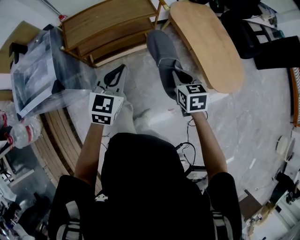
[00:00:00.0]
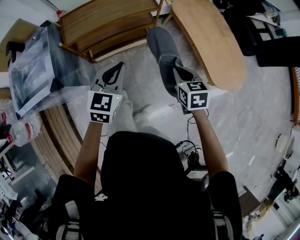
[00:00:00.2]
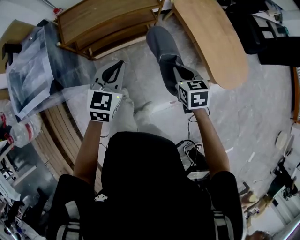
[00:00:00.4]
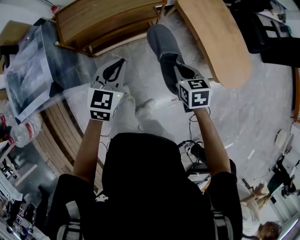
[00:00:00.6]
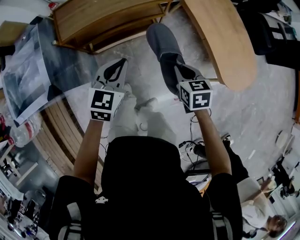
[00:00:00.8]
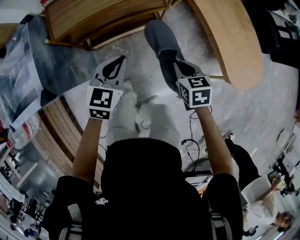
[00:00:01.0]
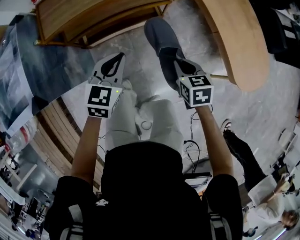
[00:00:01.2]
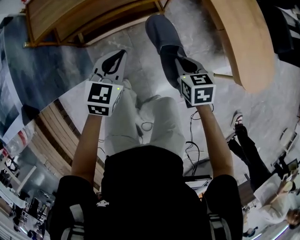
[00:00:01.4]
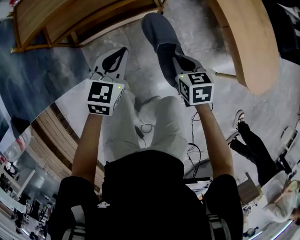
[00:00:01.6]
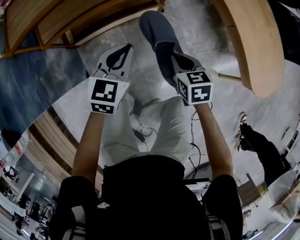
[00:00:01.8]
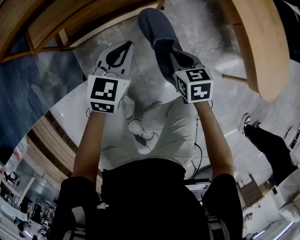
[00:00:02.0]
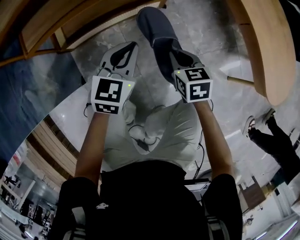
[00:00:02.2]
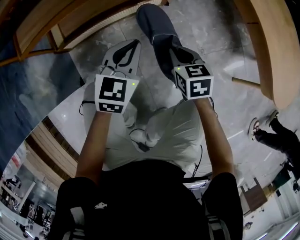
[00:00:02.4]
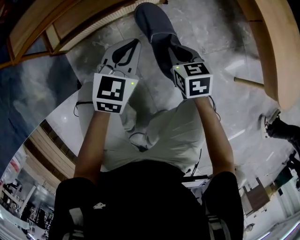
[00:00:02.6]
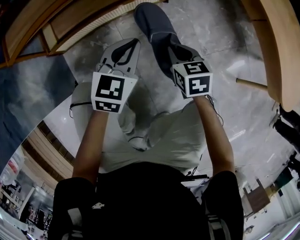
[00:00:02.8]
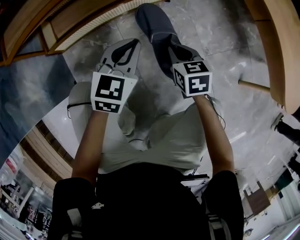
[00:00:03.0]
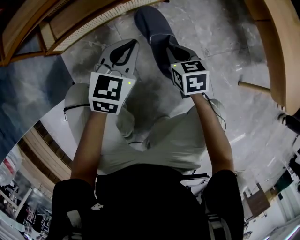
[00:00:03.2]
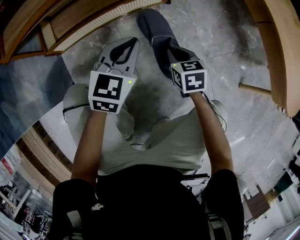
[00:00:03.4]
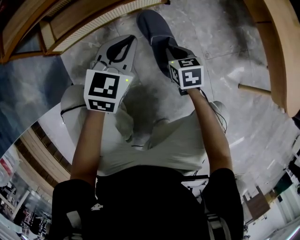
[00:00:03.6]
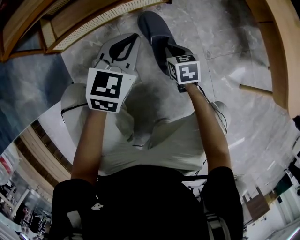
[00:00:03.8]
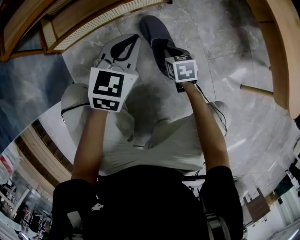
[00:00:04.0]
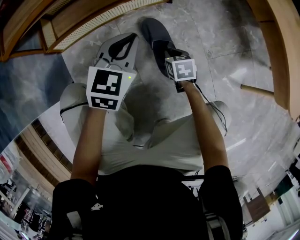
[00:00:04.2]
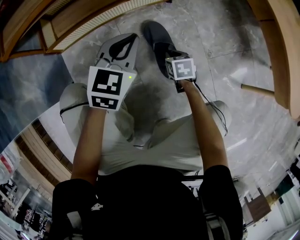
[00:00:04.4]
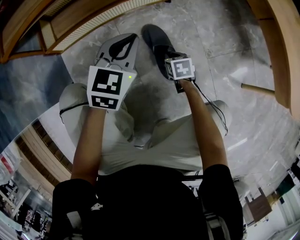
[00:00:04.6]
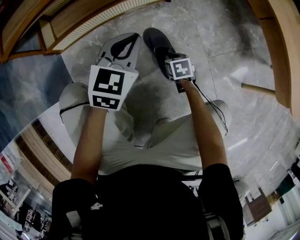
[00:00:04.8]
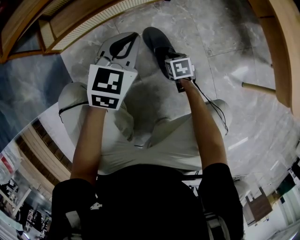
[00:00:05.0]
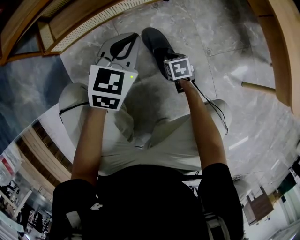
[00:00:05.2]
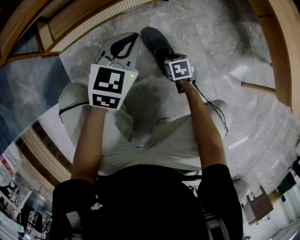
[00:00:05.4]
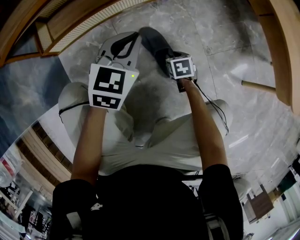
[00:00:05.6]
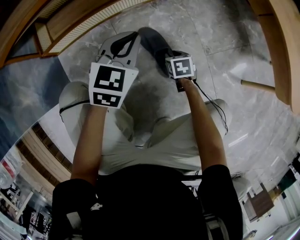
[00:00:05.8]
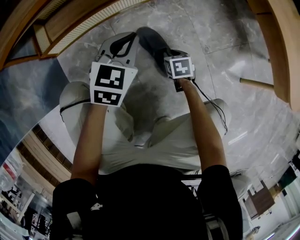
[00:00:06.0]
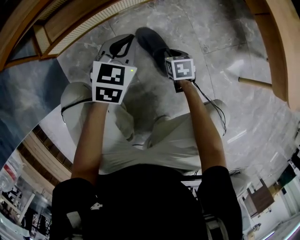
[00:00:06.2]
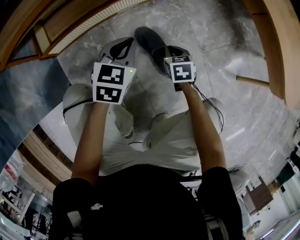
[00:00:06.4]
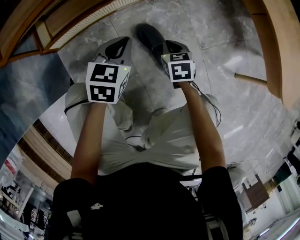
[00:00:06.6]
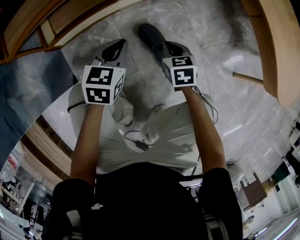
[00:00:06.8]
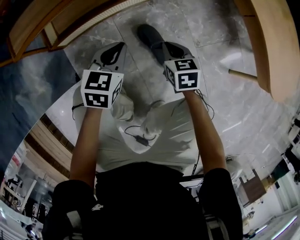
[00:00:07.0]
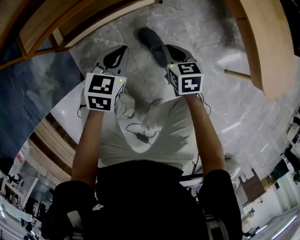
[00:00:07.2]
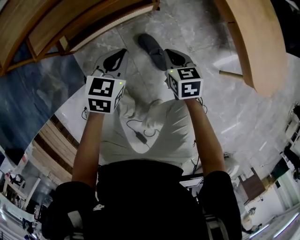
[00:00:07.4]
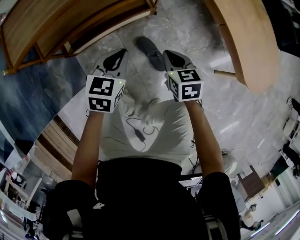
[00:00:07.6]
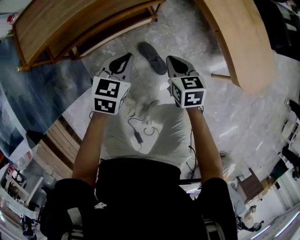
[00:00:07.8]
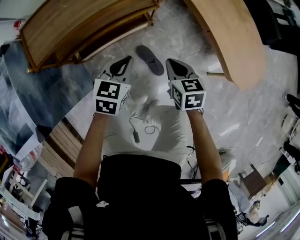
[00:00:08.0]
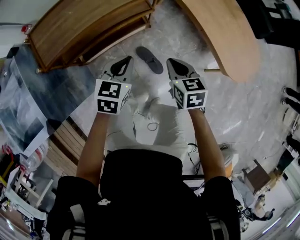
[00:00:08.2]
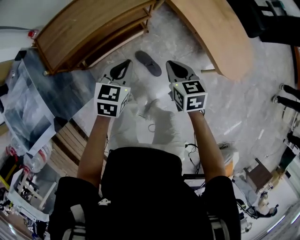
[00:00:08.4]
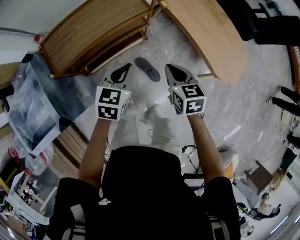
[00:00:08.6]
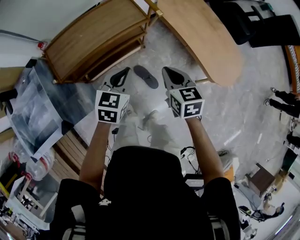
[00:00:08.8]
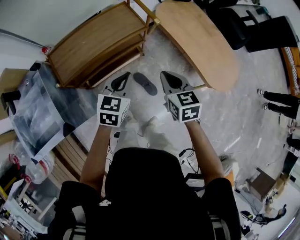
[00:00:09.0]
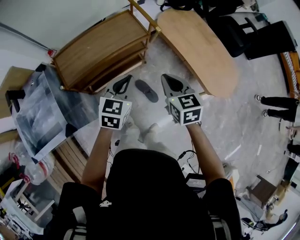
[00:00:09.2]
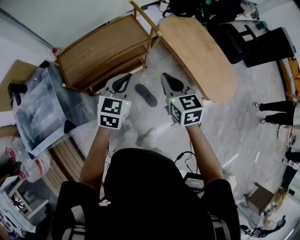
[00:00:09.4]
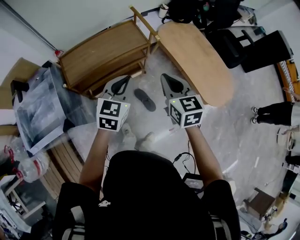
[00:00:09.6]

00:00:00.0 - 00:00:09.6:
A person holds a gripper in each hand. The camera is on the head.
00:00:00.0 - 00:00:01.6: The grippers both shift downward by about 35 cm.
00:00:01.6 - 00:00:03.2: Both grippers move downward, approximately 30 cm.
00:00:03.2 - 00:00:04.8: The right gripper heads downward, covering some 15 cm.
00:00:04.8 - 00:00:06.4: The right gripper travels upward by roughly 10 cm.
00:00:06.4 - 00:00:08.0: Both grippers move upward, approximately 50 cm.
00:00:08.0 - 00:00:09.6: Both grippers move upward, approximately 35 cm. The right gripper rotates roughly 20 degrees.

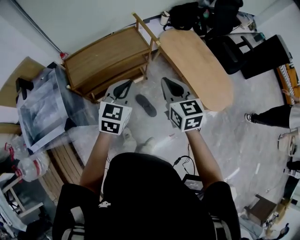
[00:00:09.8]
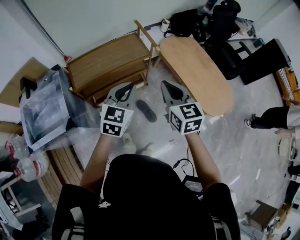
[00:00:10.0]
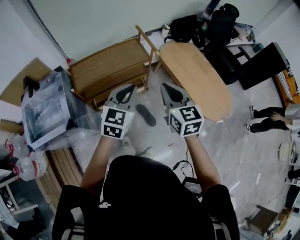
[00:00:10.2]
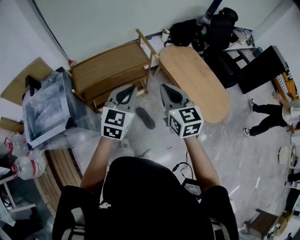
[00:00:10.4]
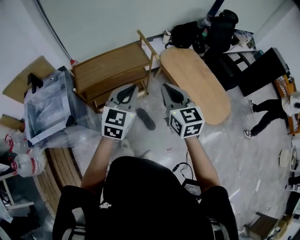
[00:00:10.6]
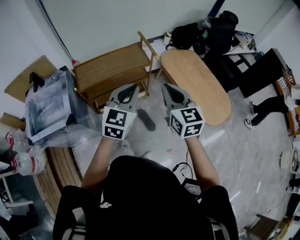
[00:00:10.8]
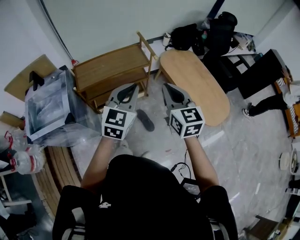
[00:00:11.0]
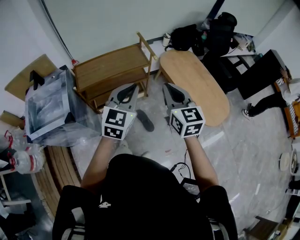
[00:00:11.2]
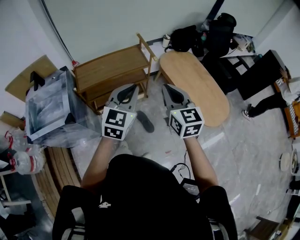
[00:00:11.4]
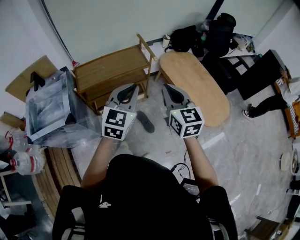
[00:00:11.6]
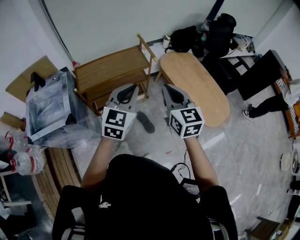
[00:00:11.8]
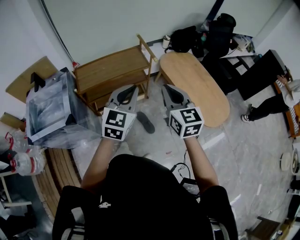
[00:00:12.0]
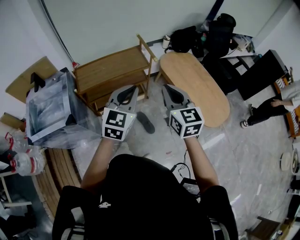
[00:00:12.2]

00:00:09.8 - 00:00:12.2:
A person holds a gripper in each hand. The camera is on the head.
00:00:09.8 - 00:00:11.0: The right gripper goes roughly 10 cm backward and upward, while the left gripper is displaced upward and backward by about 10 cm.
00:00:11.0 - 00:00:12.2: Both grippers stay about where they are.

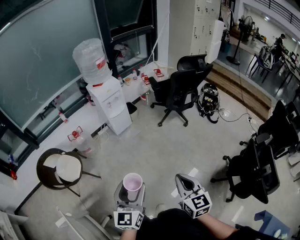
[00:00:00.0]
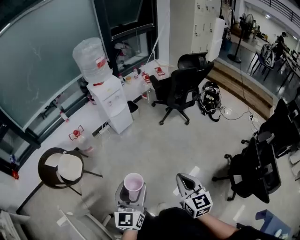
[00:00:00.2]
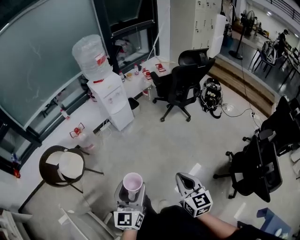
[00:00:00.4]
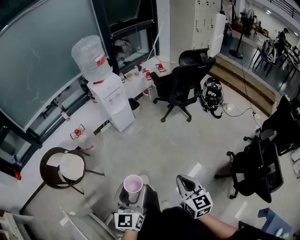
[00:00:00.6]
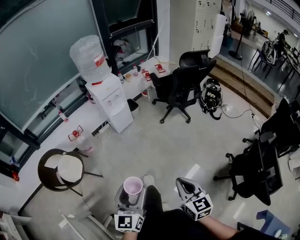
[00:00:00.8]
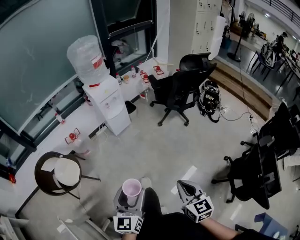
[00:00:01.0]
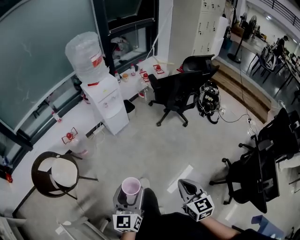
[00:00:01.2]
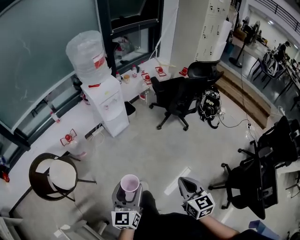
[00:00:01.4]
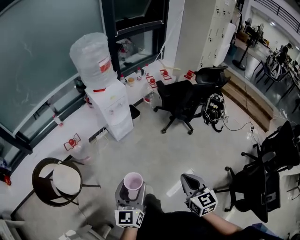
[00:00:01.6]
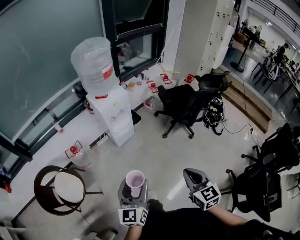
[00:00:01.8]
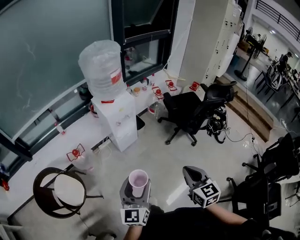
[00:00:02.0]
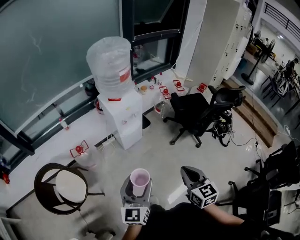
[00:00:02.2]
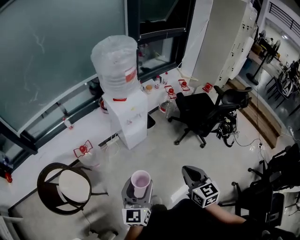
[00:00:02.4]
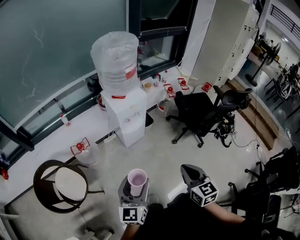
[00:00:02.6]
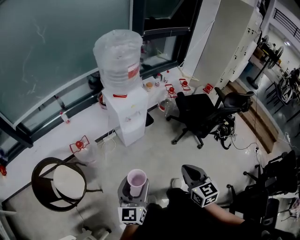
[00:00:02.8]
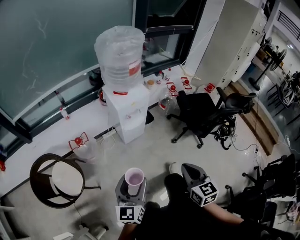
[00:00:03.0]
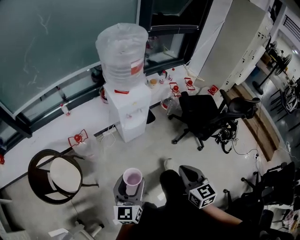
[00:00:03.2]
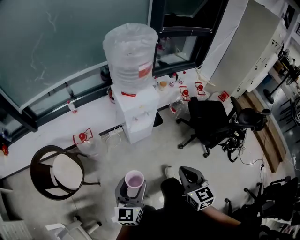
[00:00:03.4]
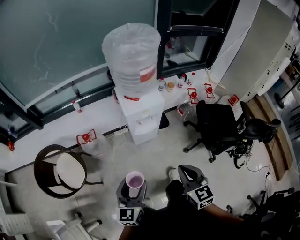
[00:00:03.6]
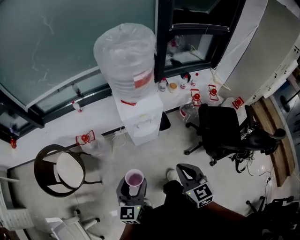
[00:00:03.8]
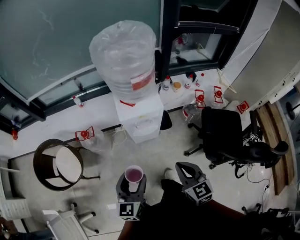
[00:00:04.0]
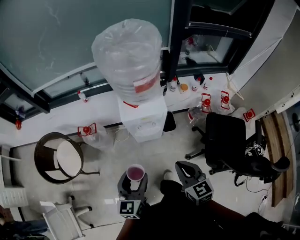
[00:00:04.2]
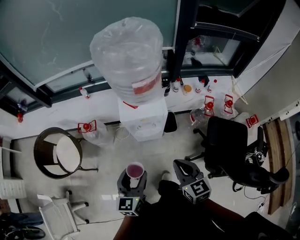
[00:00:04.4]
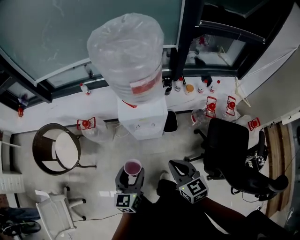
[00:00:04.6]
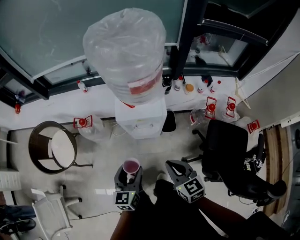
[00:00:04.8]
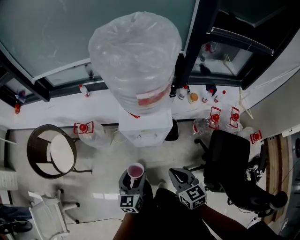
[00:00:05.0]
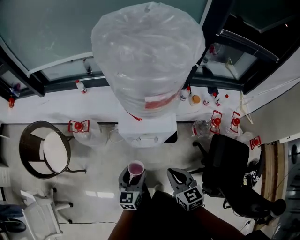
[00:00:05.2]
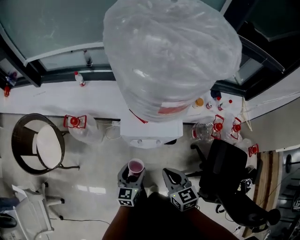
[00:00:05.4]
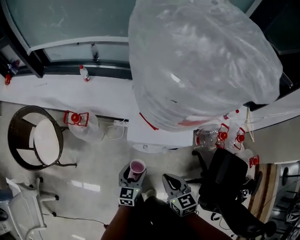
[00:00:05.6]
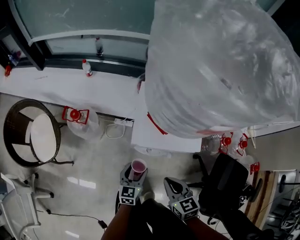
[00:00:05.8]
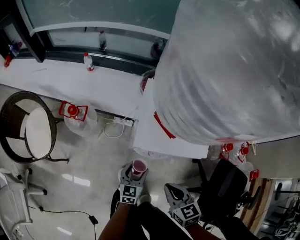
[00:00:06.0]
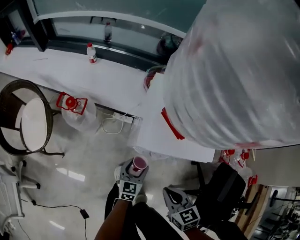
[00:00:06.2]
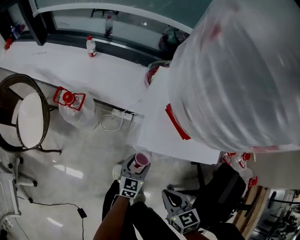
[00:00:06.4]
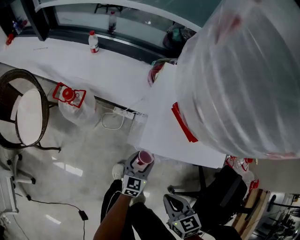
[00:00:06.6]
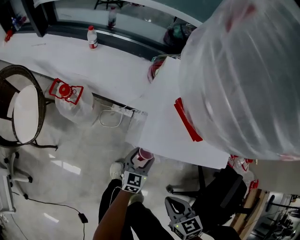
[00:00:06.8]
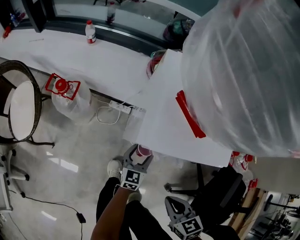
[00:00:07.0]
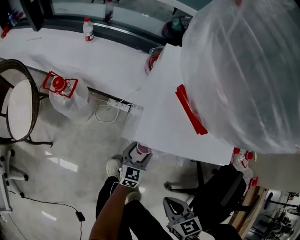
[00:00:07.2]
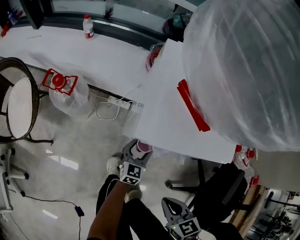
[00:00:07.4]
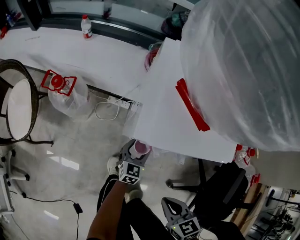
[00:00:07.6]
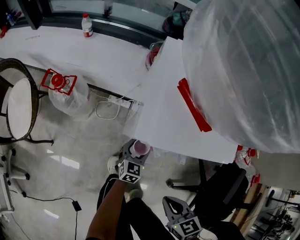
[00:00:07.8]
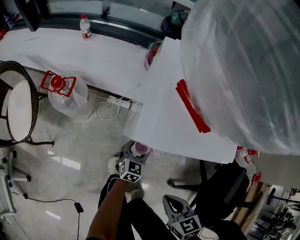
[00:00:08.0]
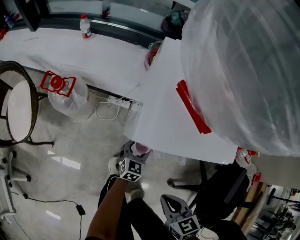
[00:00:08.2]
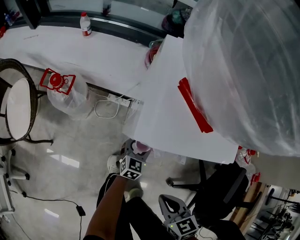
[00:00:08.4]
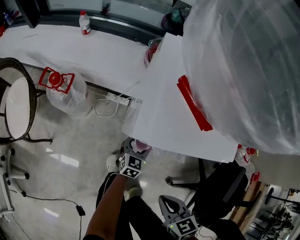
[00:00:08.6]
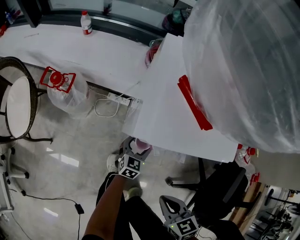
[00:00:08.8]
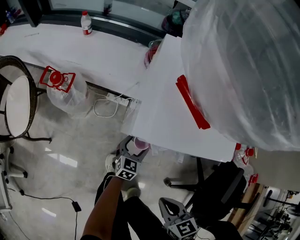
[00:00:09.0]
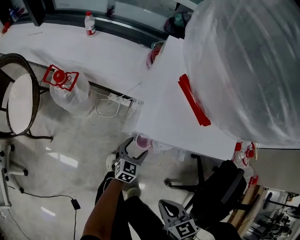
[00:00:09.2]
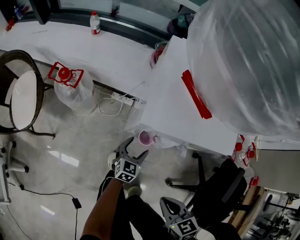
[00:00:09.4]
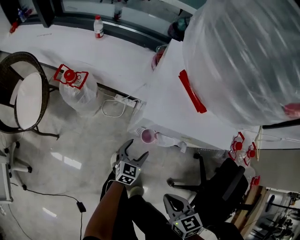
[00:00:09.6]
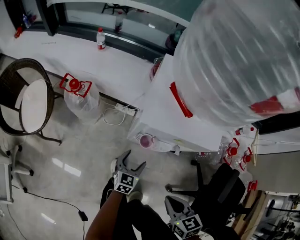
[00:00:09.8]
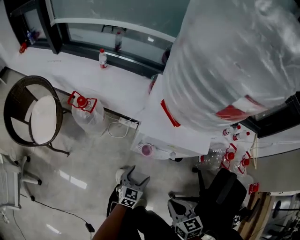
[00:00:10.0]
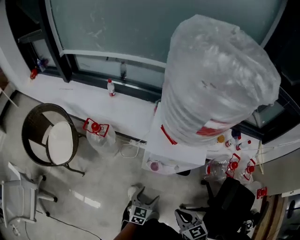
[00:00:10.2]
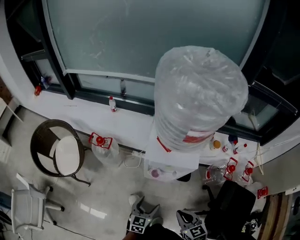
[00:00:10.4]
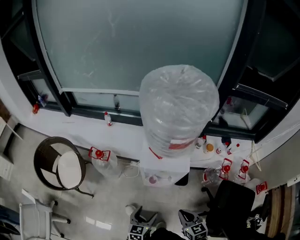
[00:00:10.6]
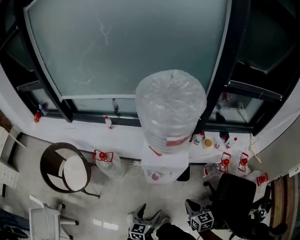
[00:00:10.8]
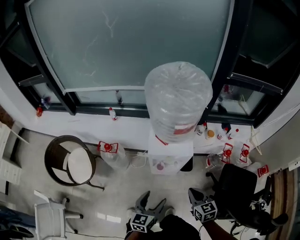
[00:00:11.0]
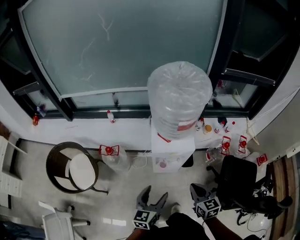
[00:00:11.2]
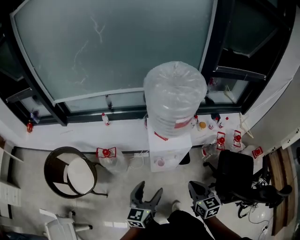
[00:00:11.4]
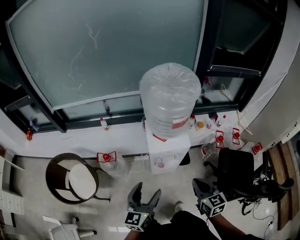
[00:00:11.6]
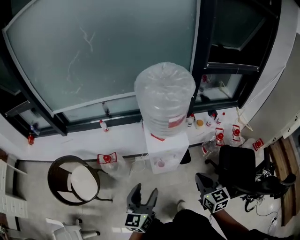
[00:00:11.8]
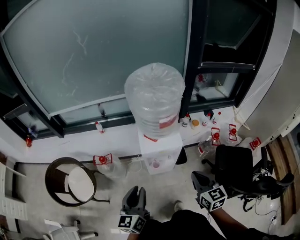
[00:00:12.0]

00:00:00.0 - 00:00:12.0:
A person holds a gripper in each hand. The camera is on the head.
00:00:00.0 - 00:00:01.6: The grippers both shift forward by approximately 25 cm.
00:00:01.6 - 00:00:03.0: The two grippers go about 20 cm forward and to the left.
00:00:03.0 - 00:00:04.4: The right gripper moves roughly 35 cm, and swivels roughly 30 degrees. Meanwhile the left gripper shifts by approximately 30 cm, and rotates approximately 30 degrees.
00:00:04.4 - 00:00:06.0: The two grippers go approximately 40 cm downward and forward. The right gripper changes its angle by approximately 20 degrees.
00:00:06.0 - 00:00:07.6: The right gripper is displaced downward and backward by approximately 15 cm. The left gripper goes roughly 15 cm downward.
00:00:07.6 - 00:00:09.0: The grippers stay close to where they were, moving slightly.
00:00:09.0 - 00:00:10.4: The left gripper shifts about 35 cm upward and backward, while the right gripper moves upward, about 20 cm.
00:00:10.4 - 00:00:12.0: Both grippers move upward, roughly 30 cm. The right gripper rotates some 30 degrees. The left gripper rotates approximately 20 degrees, and closes up.
